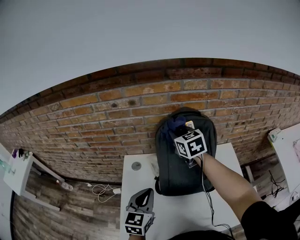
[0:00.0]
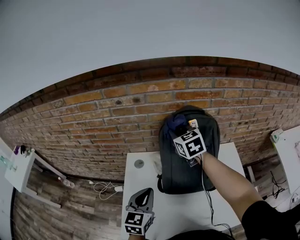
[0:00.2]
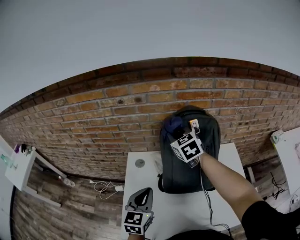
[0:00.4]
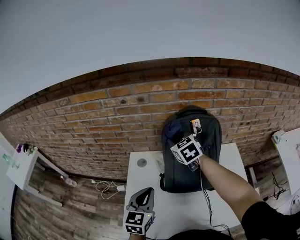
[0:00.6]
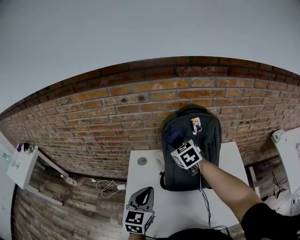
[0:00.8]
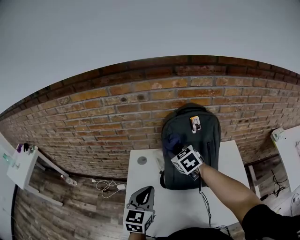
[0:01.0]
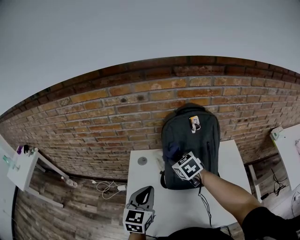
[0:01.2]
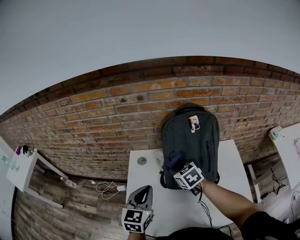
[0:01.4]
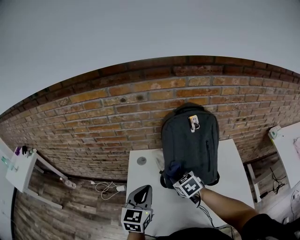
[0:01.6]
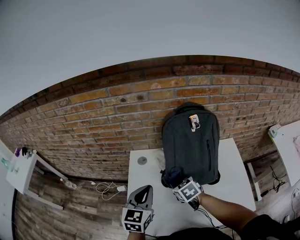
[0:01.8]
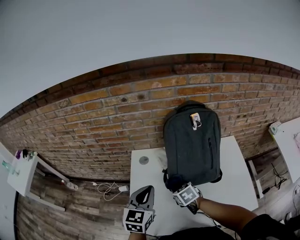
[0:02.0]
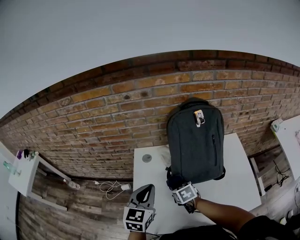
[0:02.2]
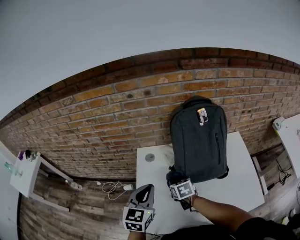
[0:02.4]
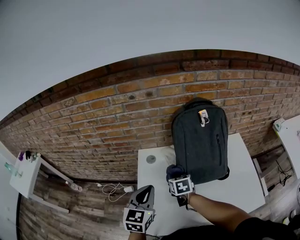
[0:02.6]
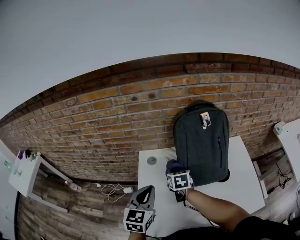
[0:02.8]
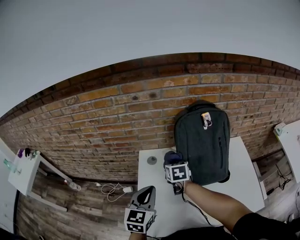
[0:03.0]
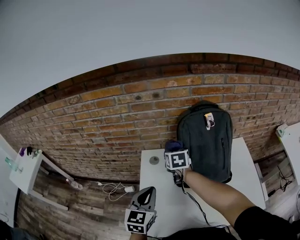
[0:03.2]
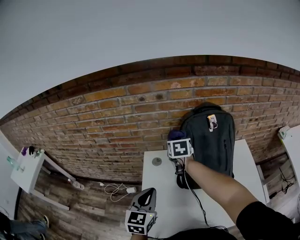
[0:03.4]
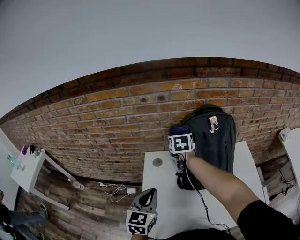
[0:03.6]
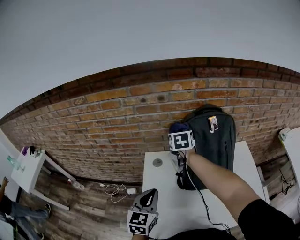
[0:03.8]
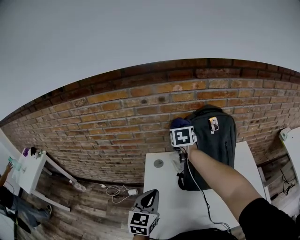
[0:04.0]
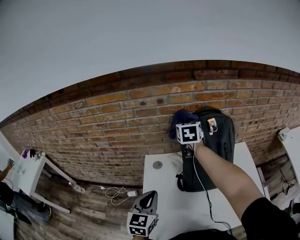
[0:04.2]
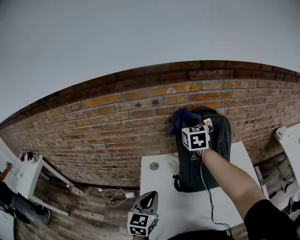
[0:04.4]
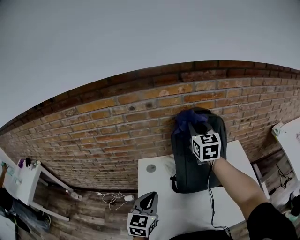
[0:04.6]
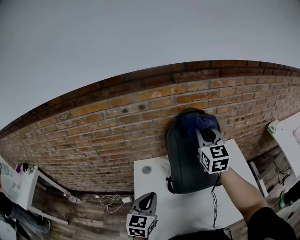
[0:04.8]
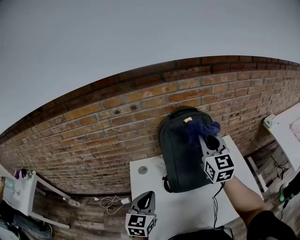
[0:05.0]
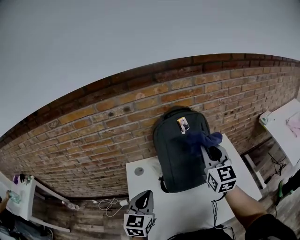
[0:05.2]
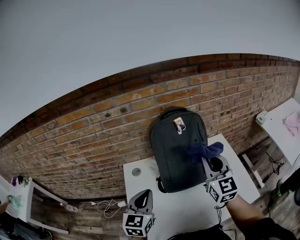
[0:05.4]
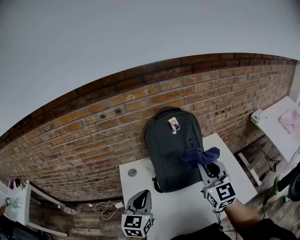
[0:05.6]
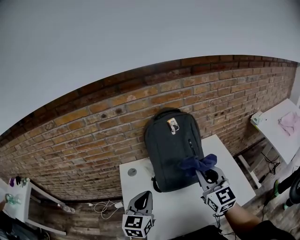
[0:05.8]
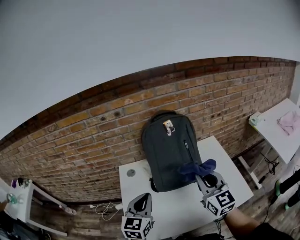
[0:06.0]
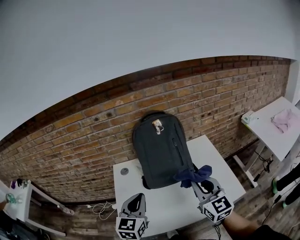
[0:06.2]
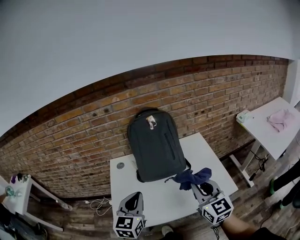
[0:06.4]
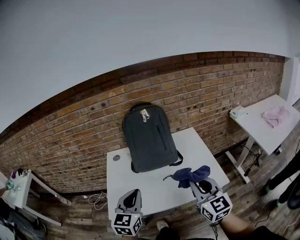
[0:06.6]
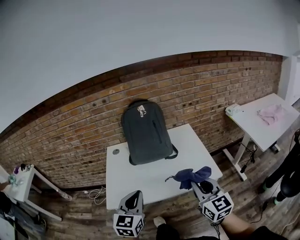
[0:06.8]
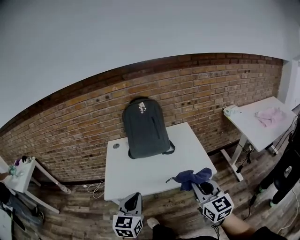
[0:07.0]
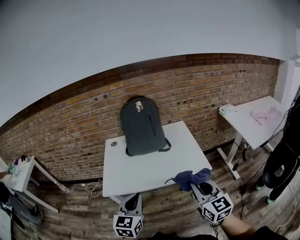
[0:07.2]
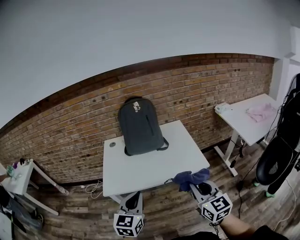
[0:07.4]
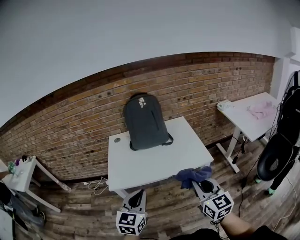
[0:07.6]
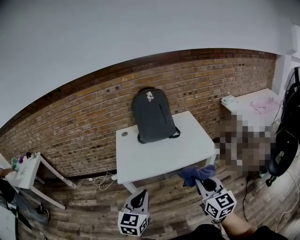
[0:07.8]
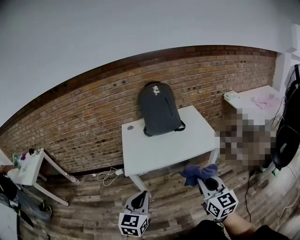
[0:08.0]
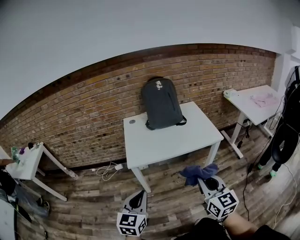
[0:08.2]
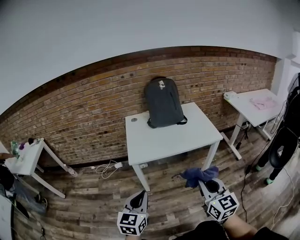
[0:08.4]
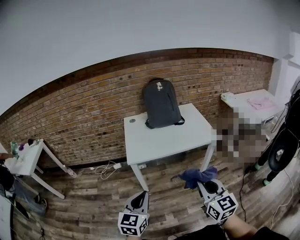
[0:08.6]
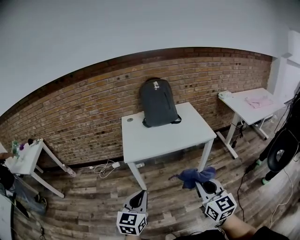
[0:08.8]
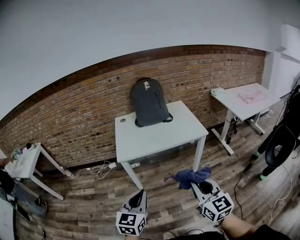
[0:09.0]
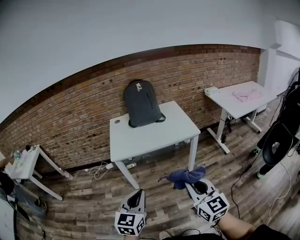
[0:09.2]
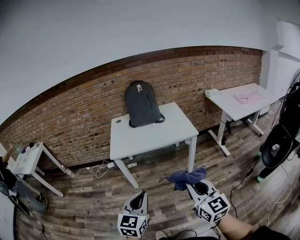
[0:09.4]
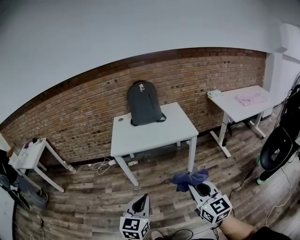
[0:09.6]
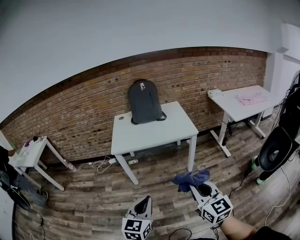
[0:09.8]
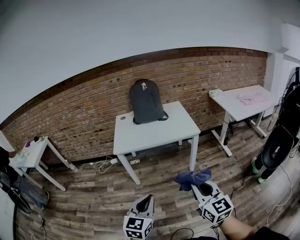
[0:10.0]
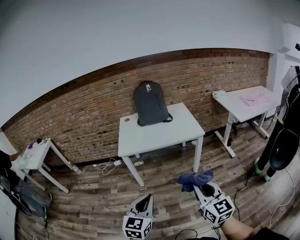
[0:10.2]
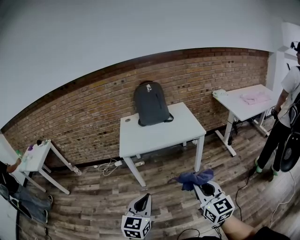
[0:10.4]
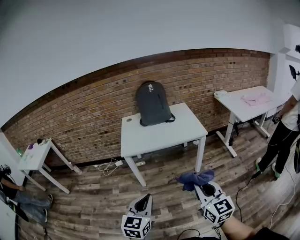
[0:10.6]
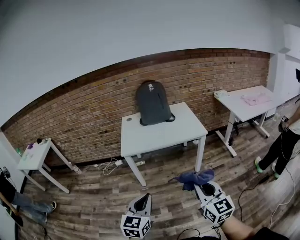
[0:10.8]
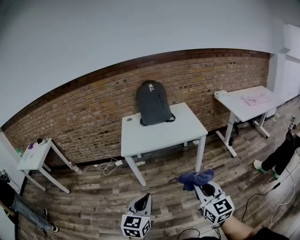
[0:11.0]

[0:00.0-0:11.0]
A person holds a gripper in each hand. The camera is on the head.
0:00.0 to 0:01.6: The right gripper travels backward and downward by some 25 cm, and rotates roughly 20 degrees.
0:01.6 to 0:03.2: The right gripper goes some 15 cm forward and to the left, and rotates approximately 30 degrees; the left gripper goes approximately 5 cm to the left.
0:03.2 to 0:04.8: The right gripper moves upward and to the right, approximately 30 cm, and points its fingers some 40 degrees further upward.
0:04.8 to 0:06.2: The left gripper heads to the right and backward, covering some 10 cm. The right gripper heads backward and to the right, covering about 30 cm.
0:06.2 to 0:07.8: Both grippers travel together backward, roughly 35 cm.
0:07.8 to 0:09.4: Both grippers move backward, roughly 25 cm.
0:09.4 to 0:11.0: The left gripper shifts by roughly 5 cm.

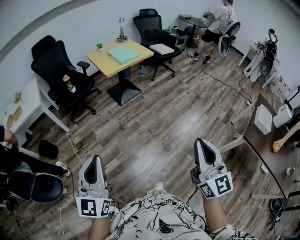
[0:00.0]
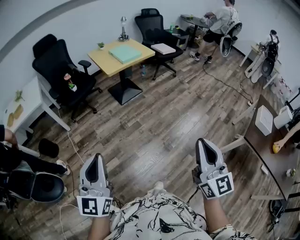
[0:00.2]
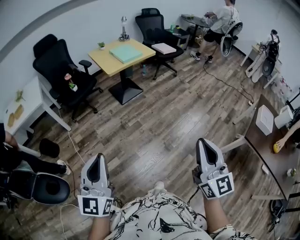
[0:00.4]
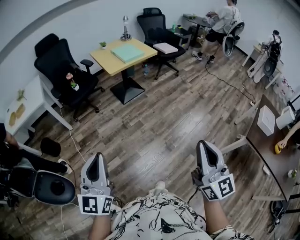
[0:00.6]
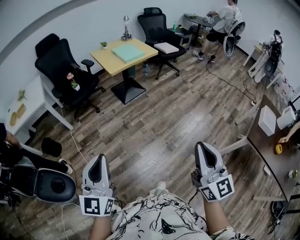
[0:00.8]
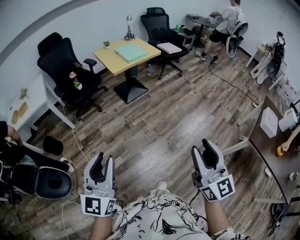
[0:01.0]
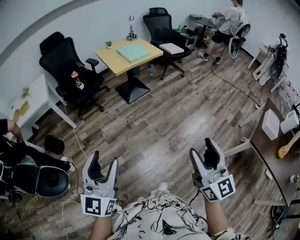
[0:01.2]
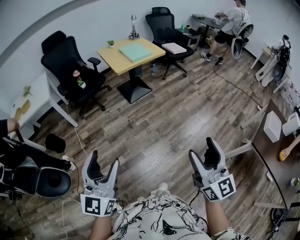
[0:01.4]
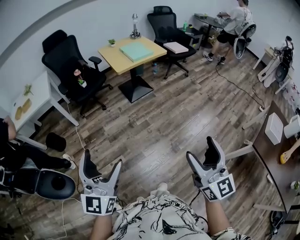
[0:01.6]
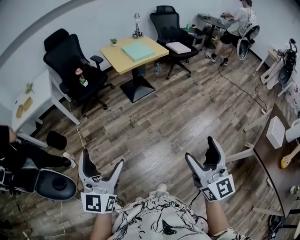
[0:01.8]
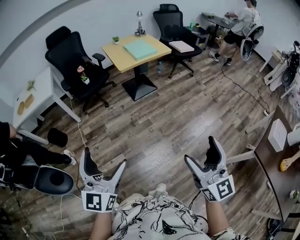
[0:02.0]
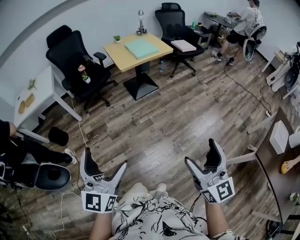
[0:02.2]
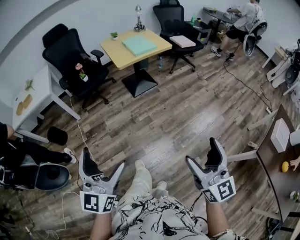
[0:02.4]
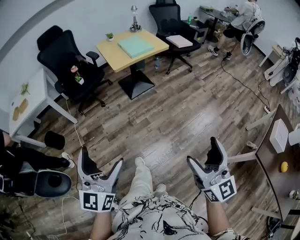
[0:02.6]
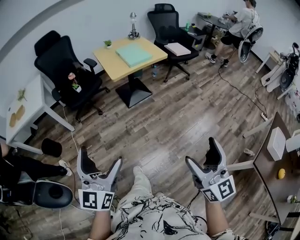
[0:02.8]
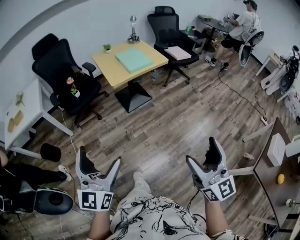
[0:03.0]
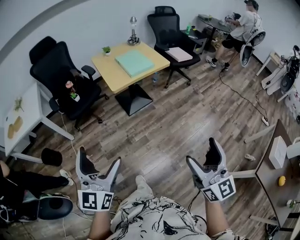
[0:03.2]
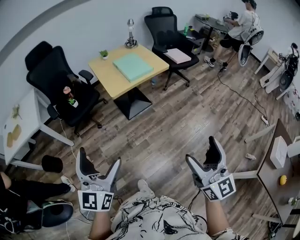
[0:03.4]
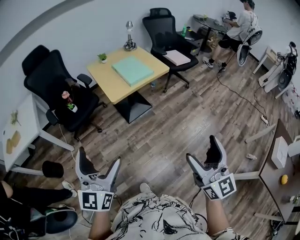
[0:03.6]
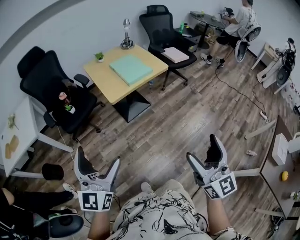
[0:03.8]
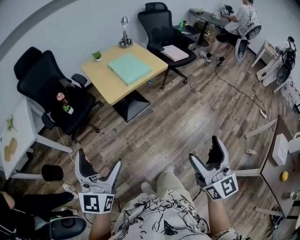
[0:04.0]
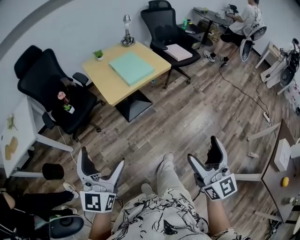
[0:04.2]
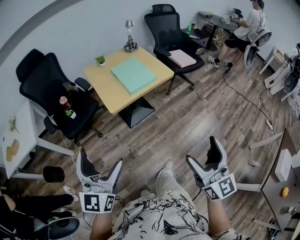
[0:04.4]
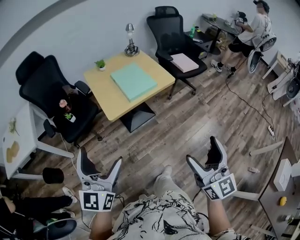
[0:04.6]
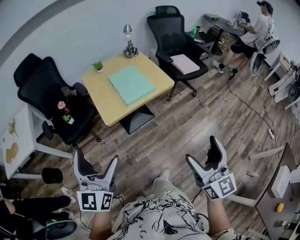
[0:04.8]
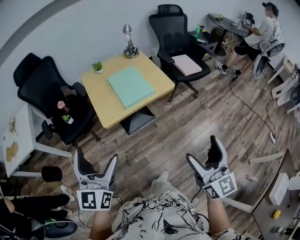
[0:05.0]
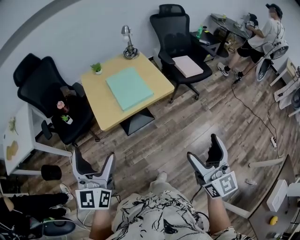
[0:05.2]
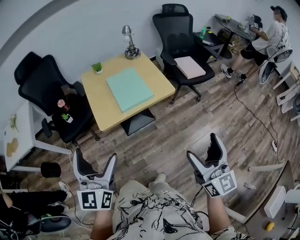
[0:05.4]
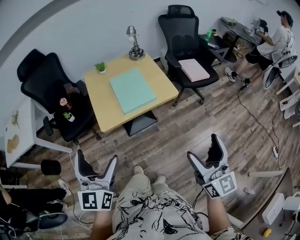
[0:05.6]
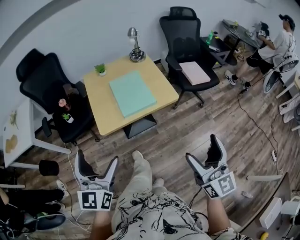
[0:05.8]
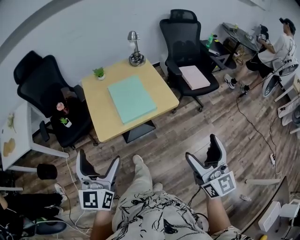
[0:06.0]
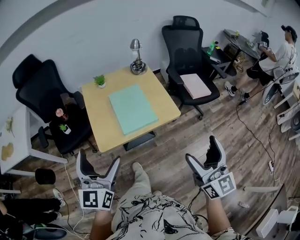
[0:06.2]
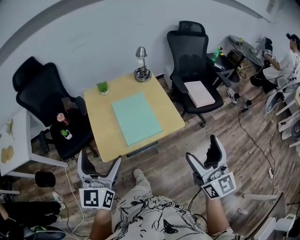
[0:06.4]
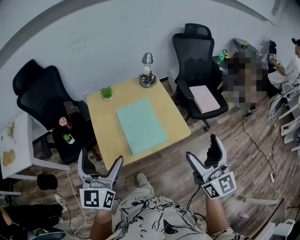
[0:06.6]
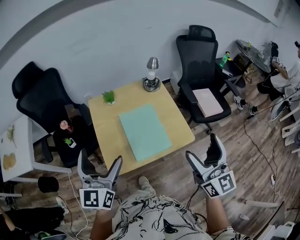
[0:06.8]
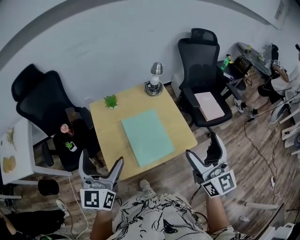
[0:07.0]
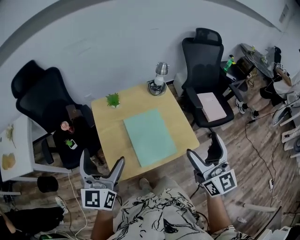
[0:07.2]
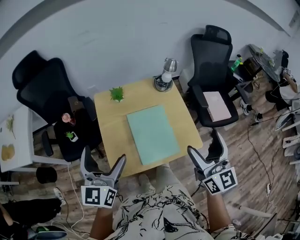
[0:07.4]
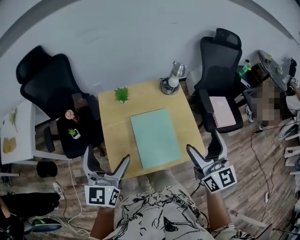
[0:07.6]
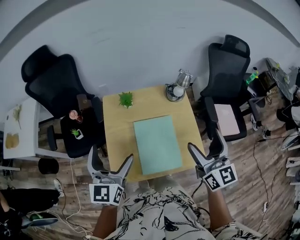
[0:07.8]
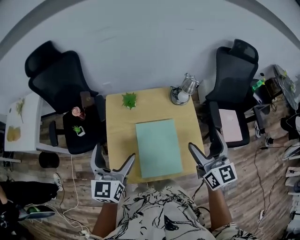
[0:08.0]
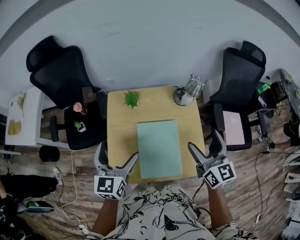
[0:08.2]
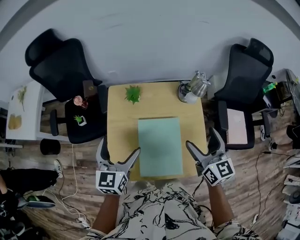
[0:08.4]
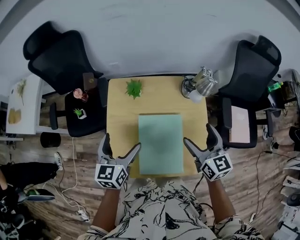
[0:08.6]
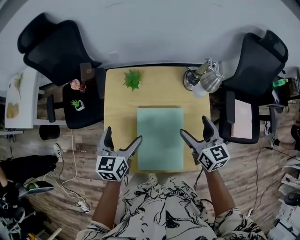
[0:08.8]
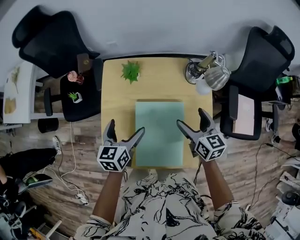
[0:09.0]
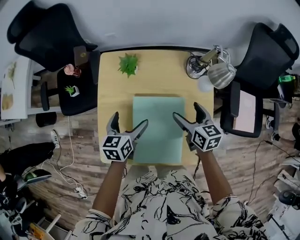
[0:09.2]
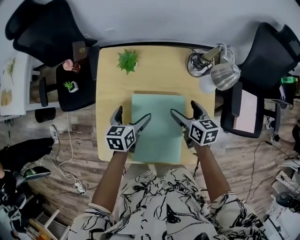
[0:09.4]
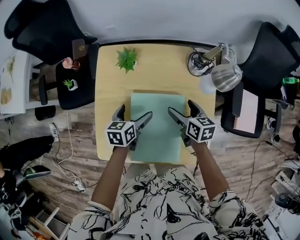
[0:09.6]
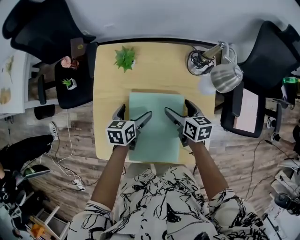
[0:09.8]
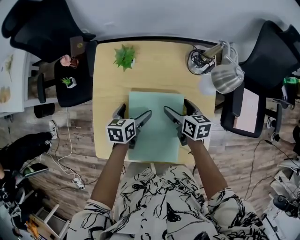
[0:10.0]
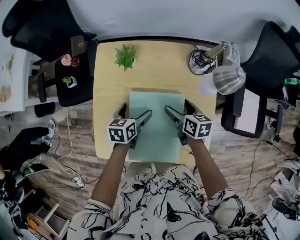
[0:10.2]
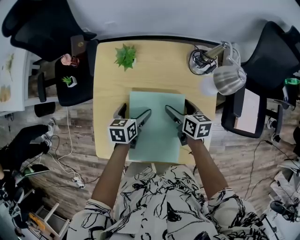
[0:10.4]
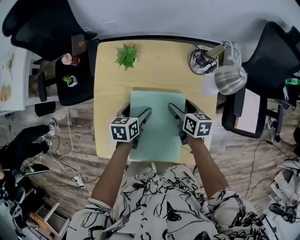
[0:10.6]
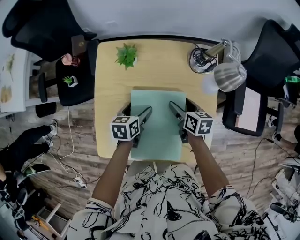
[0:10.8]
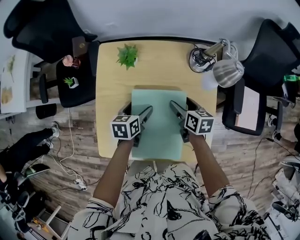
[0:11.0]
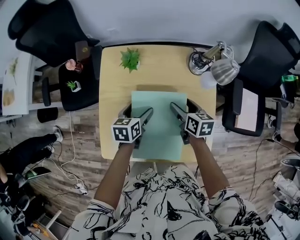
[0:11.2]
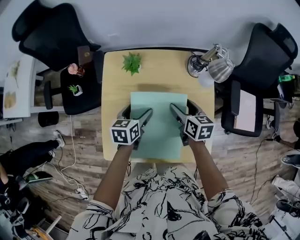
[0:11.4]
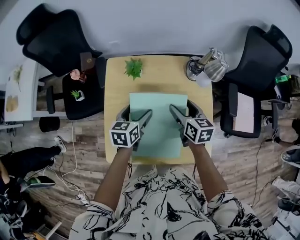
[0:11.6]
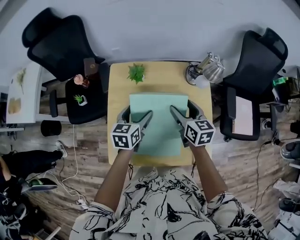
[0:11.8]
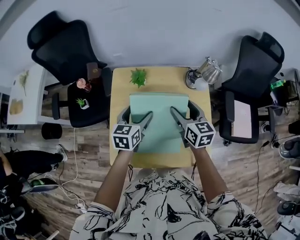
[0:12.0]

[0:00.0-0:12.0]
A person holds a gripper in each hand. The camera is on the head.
0:00.0 to 0:01.6: The left gripper opens; the right gripper opens.
0:01.6 to 0:03.0: The two grippers go approximately 20 cm forward.
0:03.0 to 0:04.4: The grippers both shift forward by approximately 25 cm.
0:04.4 to 0:06.0: Both grippers travel together forward and to the right, approximately 30 cm.
0:06.0 to 0:07.6: The grippers both shift forward by approximately 35 cm.
0:07.6 to 0:09.0: The two grippers go about 30 cm downward and forward. The left gripper turns by about 30 degrees, while the right gripper rotates about 40 degrees.
0:09.0 to 0:10.4: The grippers both shift downward by roughly 15 cm. The right gripper swivels some 20 degrees.
0:10.4 to 0:12.0: The two grippers go some 15 cm upward. The left gripper turns by approximately 20 degrees, while the right gripper swivels roughly 30 degrees.

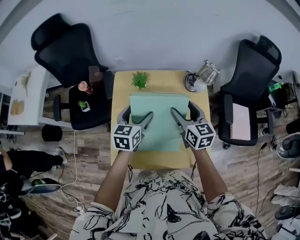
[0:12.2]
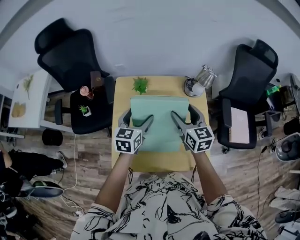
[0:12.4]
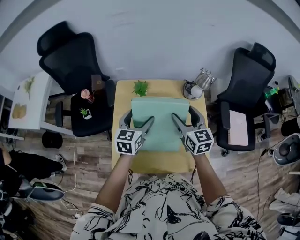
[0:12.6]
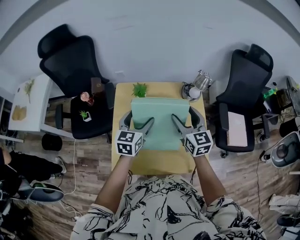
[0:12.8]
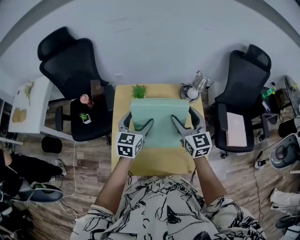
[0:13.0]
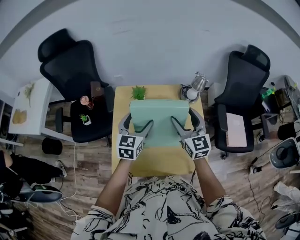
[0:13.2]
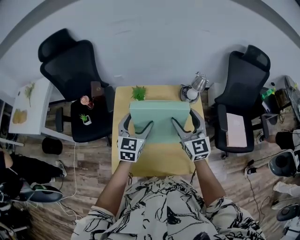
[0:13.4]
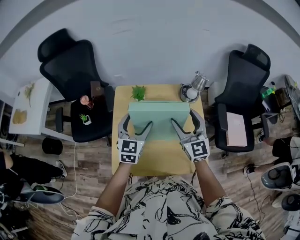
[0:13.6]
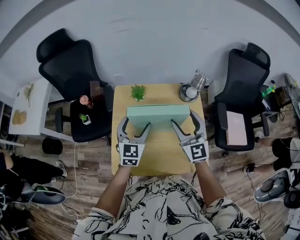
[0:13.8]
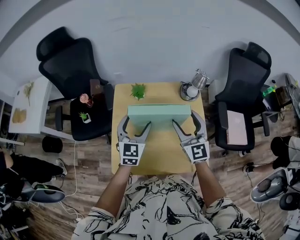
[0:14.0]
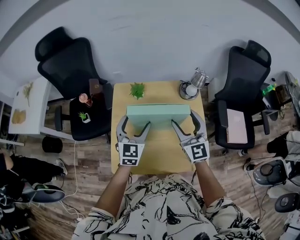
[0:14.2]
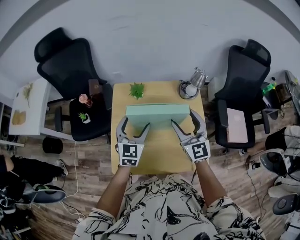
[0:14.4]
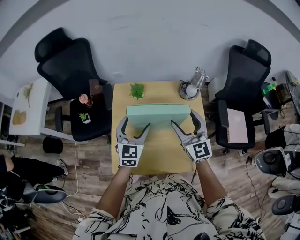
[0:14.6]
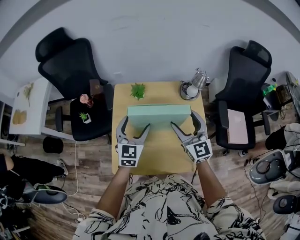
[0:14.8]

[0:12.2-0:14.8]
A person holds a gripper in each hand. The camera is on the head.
0:12.2 to 0:13.4: The two grippers go about 5 cm upward. The right gripper swivels roughly 30 degrees.
0:13.4 to 0:14.8: The grippers move only a little.
